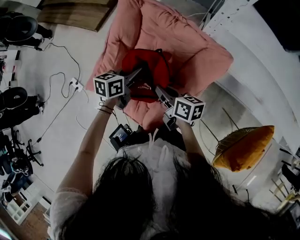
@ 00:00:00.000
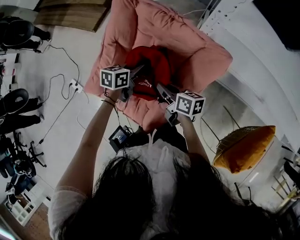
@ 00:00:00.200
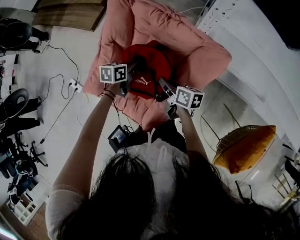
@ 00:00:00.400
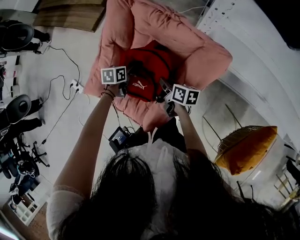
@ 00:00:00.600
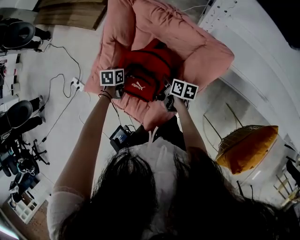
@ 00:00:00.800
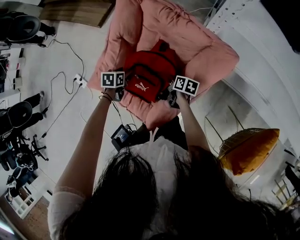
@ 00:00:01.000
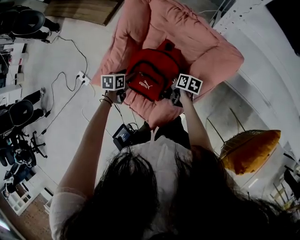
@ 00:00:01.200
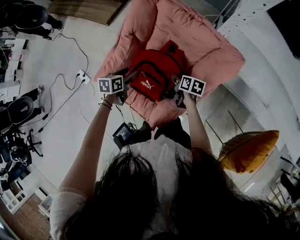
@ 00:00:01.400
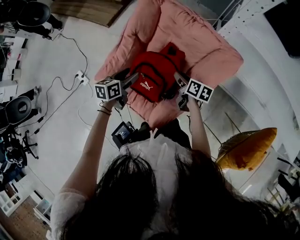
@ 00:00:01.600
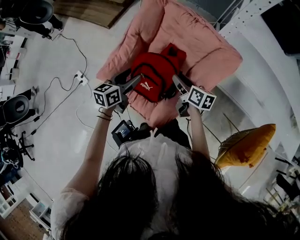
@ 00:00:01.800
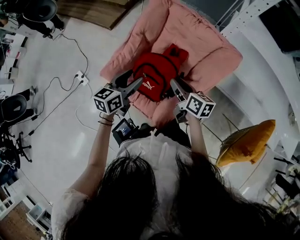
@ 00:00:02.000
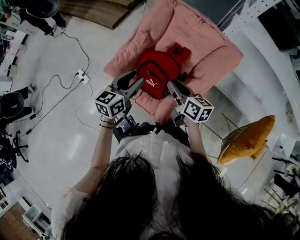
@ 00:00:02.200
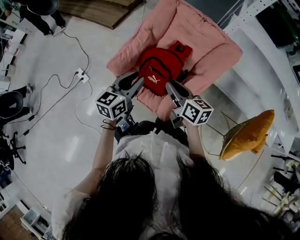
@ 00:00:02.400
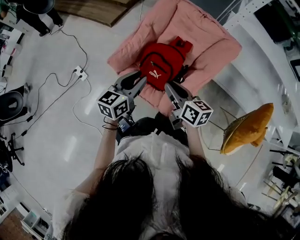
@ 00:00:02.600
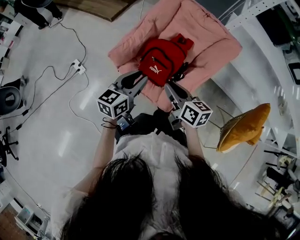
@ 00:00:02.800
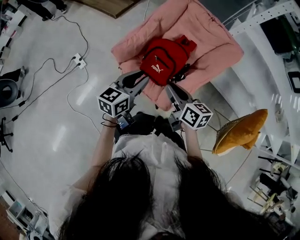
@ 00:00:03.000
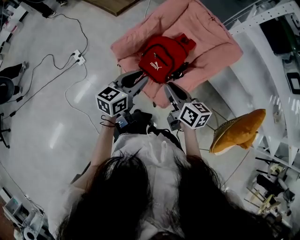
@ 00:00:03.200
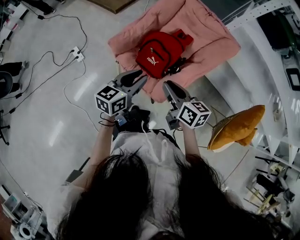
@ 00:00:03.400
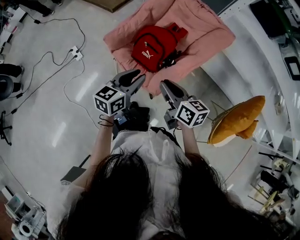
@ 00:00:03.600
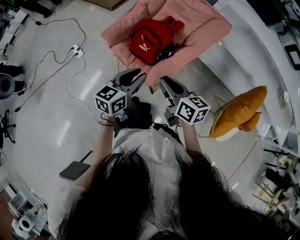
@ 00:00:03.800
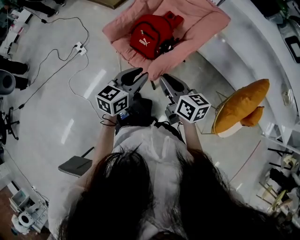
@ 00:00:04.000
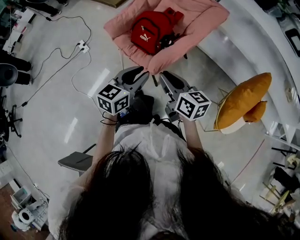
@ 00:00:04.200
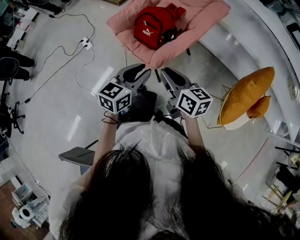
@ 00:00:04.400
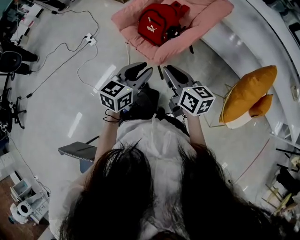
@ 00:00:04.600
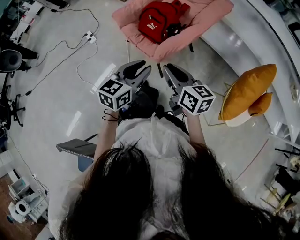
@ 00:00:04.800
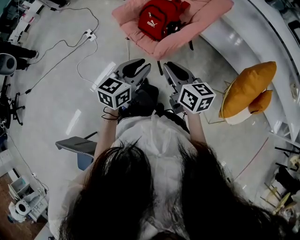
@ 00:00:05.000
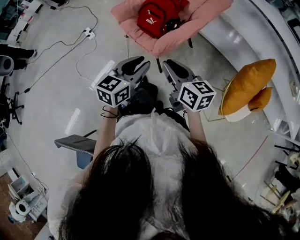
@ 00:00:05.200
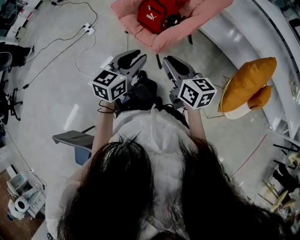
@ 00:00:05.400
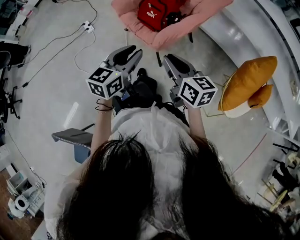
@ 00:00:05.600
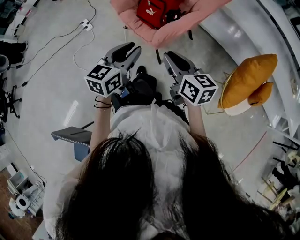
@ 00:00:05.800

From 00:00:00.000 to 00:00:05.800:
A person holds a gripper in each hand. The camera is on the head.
From 00:00:00.000 to 00:00:01.400: The left gripper heads to the left and downward, covering some 15 cm, and opens its fingers, while the right gripper heads downward, covering about 15 cm, turns by approximately 20 degrees, and opens its fingers.
From 00:00:01.400 to 00:00:02.800: The left gripper is displaced backward and upward by approximately 30 cm, tips its fingers upward by roughly 30 degrees, and closes its fingers, while the right gripper is displaced upward, backward and to the left by about 40 cm, rotates roughly 30 degrees, and closes its fingers.
From 00:00:02.800 to 00:00:04.400: Both grippers travel together backward and to the right, some 30 cm.
From 00:00:04.400 to 00:00:05.800: The left gripper moves roughly 5 cm, while the right gripper travels backward by approximately 5 cm.

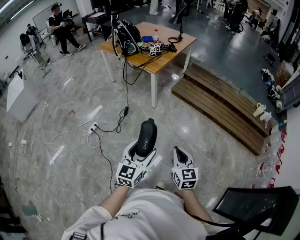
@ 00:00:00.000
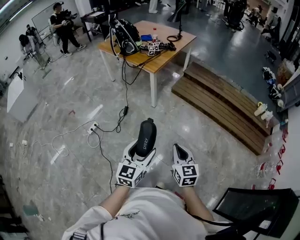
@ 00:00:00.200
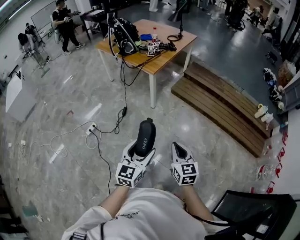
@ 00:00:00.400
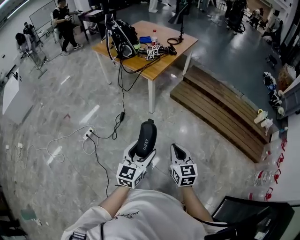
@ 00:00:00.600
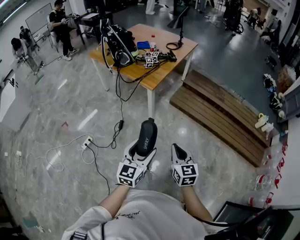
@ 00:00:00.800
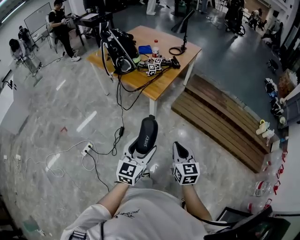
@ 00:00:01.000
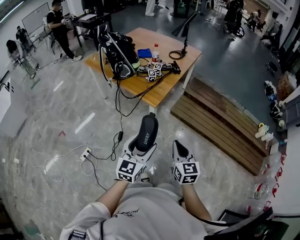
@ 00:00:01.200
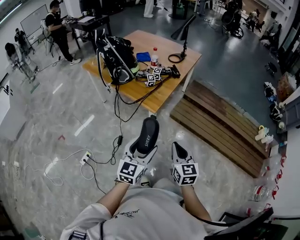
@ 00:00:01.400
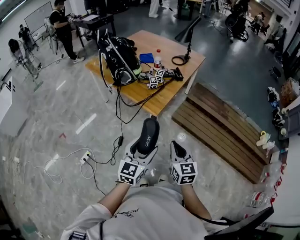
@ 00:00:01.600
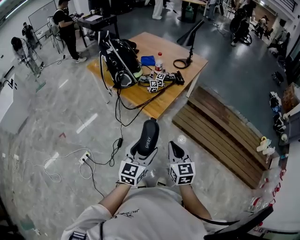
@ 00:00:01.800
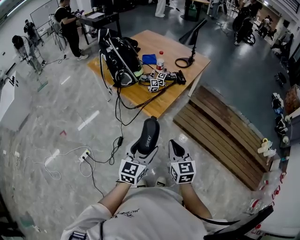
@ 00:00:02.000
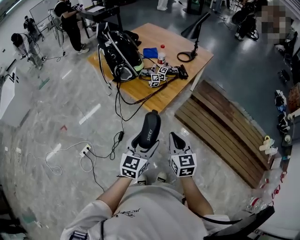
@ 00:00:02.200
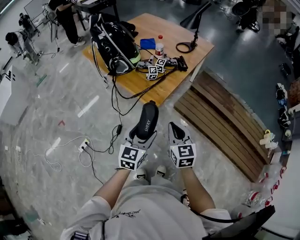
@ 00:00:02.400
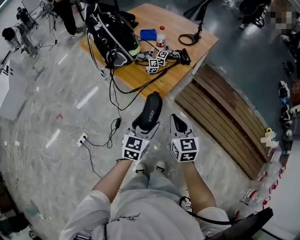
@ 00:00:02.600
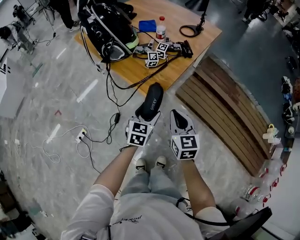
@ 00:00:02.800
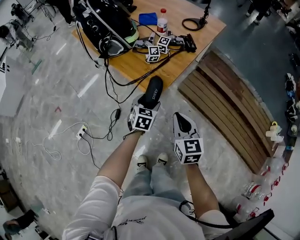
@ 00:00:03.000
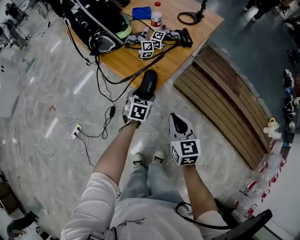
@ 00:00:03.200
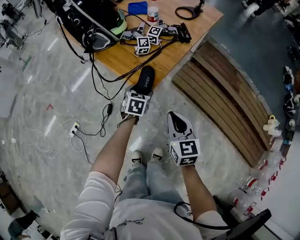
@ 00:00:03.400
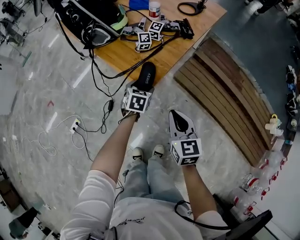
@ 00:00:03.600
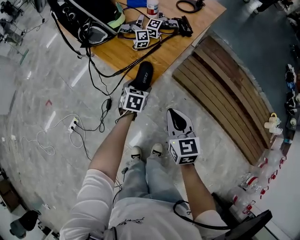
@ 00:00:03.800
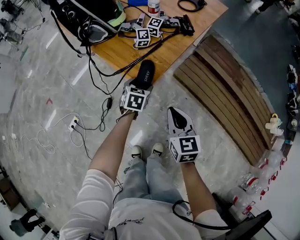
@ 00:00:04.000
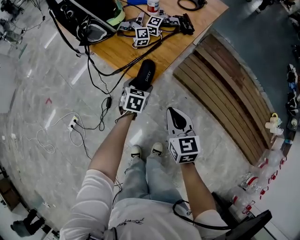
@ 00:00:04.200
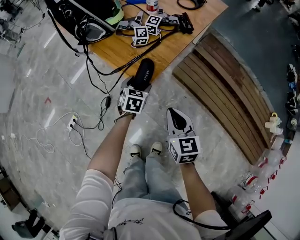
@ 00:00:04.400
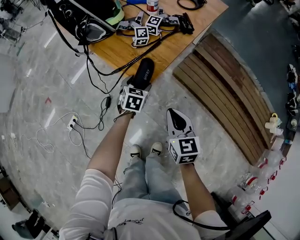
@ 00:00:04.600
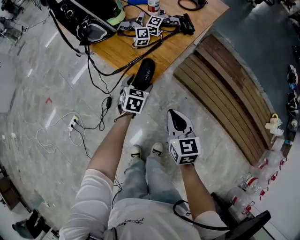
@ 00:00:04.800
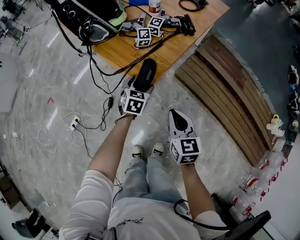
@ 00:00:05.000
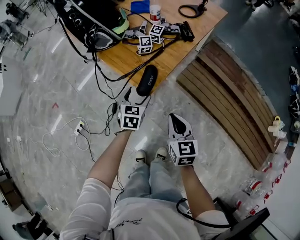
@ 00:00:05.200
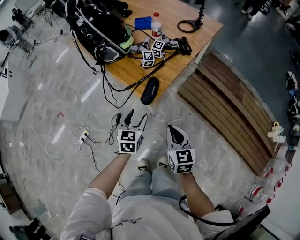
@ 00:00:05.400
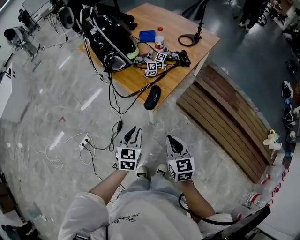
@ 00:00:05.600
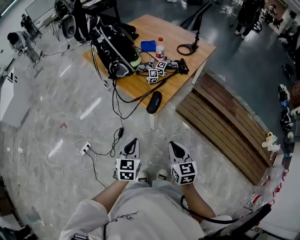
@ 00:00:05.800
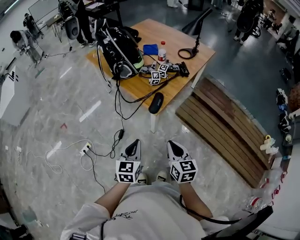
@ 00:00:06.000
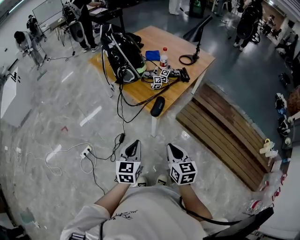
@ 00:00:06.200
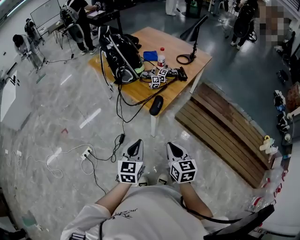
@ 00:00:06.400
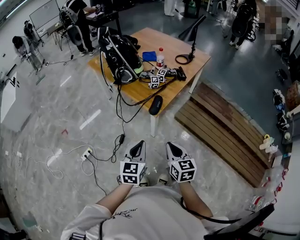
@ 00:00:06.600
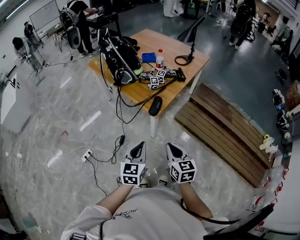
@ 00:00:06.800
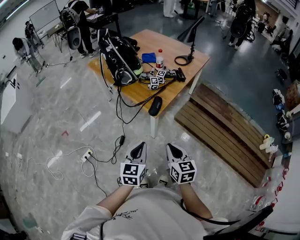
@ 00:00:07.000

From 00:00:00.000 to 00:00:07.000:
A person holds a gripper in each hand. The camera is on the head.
From 00:00:00.000 to 00:00:01.400: The two grippers travel together, forward, some 50 cm.
From 00:00:01.400 to 00:00:02.800: The right gripper moves forward, roughly 25 cm, while the left gripper moves forward and downward, approximately 30 cm, and swivels some 20 degrees.
From 00:00:02.800 to 00:00:04.200: The right gripper goes approximately 10 cm downward, while the left gripper travels downward and forward by roughly 20 cm.
From 00:00:04.200 to 00:00:05.600: The right gripper is displaced backward and upward by about 15 cm. Meanwhile the left gripper shifts some 25 cm upward and backward, and closes.
From 00:00:05.600 to 00:00:07.000: The two grippers go some 15 cm backward and upward.

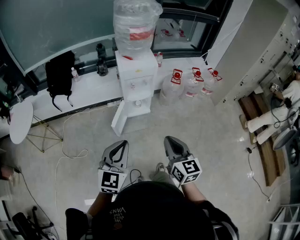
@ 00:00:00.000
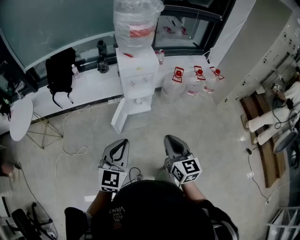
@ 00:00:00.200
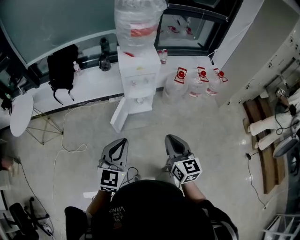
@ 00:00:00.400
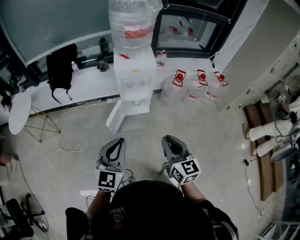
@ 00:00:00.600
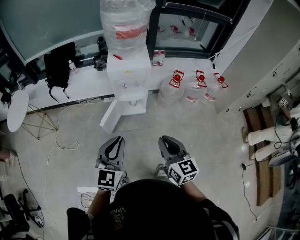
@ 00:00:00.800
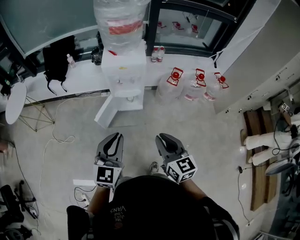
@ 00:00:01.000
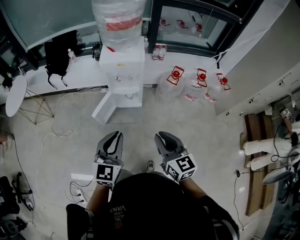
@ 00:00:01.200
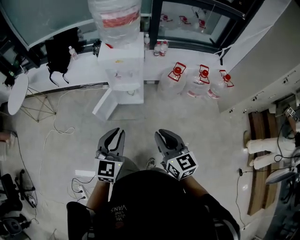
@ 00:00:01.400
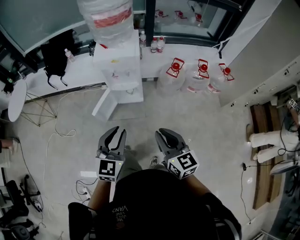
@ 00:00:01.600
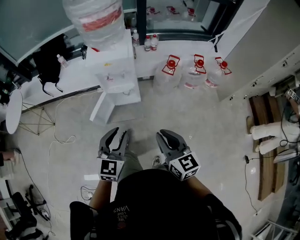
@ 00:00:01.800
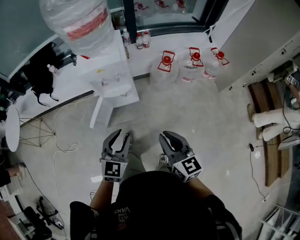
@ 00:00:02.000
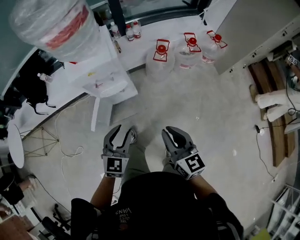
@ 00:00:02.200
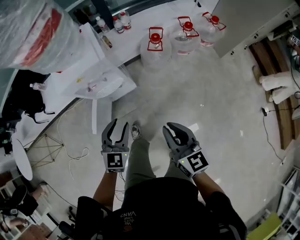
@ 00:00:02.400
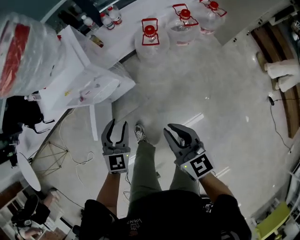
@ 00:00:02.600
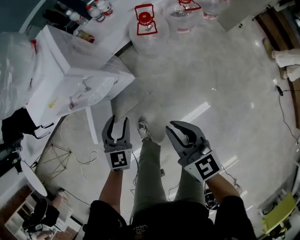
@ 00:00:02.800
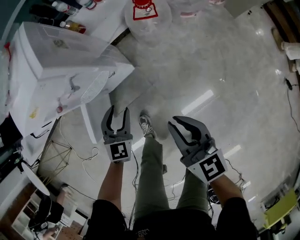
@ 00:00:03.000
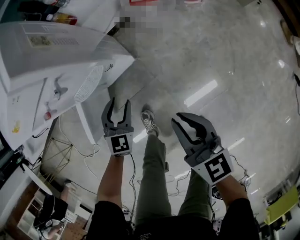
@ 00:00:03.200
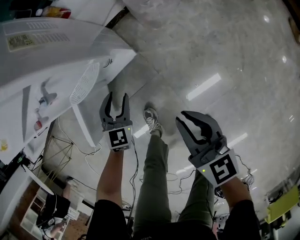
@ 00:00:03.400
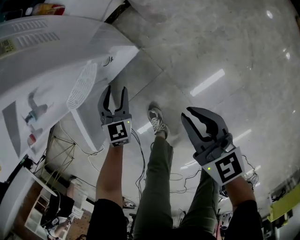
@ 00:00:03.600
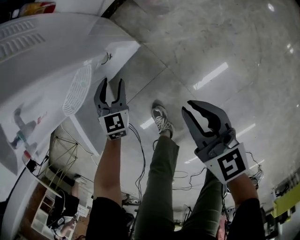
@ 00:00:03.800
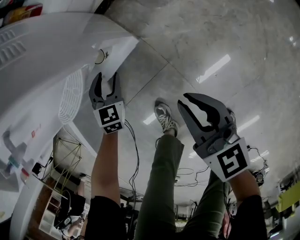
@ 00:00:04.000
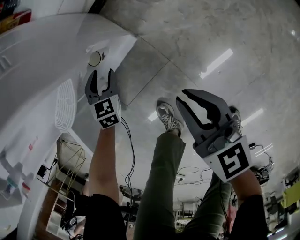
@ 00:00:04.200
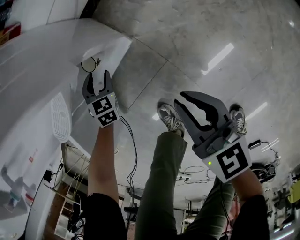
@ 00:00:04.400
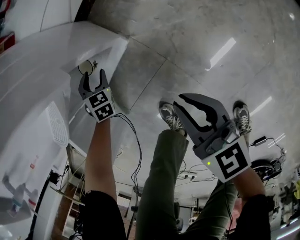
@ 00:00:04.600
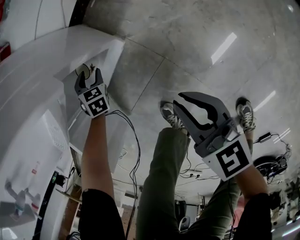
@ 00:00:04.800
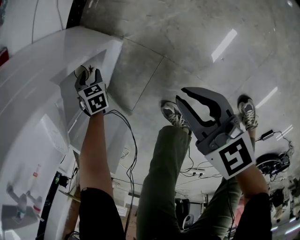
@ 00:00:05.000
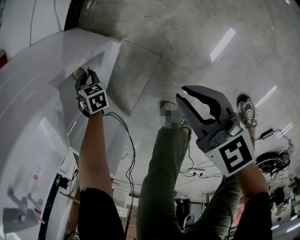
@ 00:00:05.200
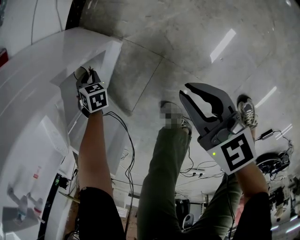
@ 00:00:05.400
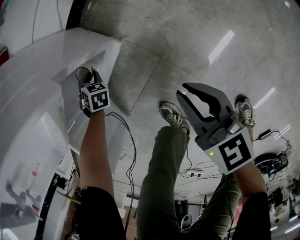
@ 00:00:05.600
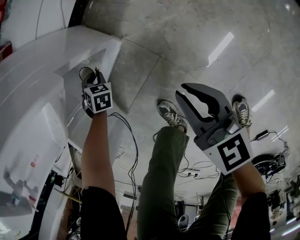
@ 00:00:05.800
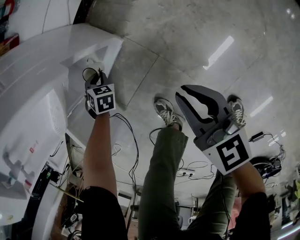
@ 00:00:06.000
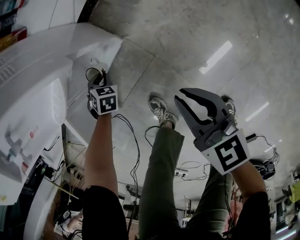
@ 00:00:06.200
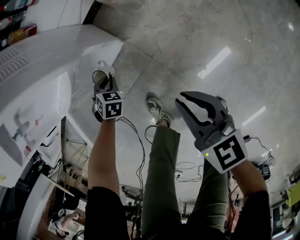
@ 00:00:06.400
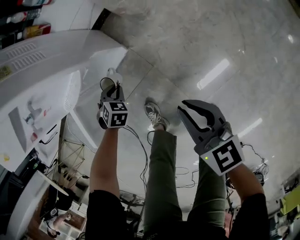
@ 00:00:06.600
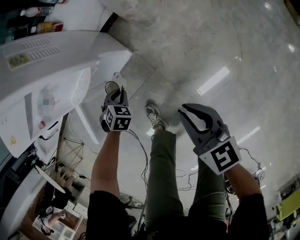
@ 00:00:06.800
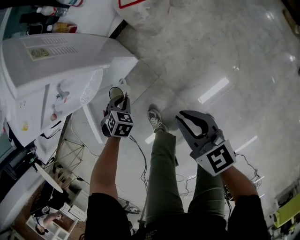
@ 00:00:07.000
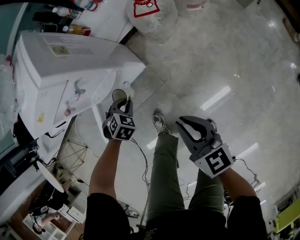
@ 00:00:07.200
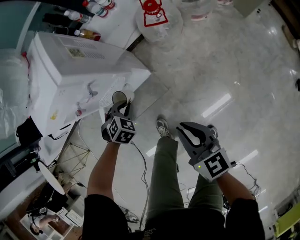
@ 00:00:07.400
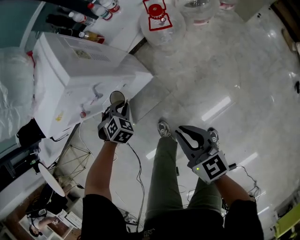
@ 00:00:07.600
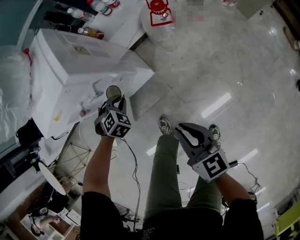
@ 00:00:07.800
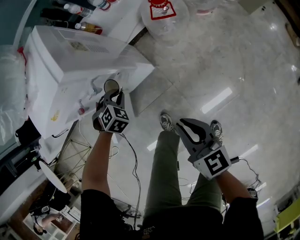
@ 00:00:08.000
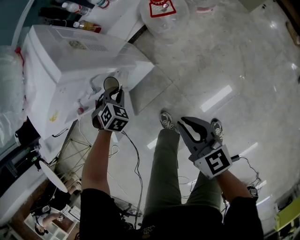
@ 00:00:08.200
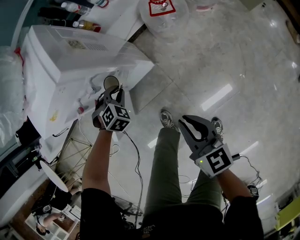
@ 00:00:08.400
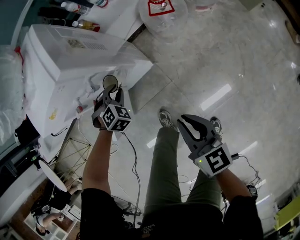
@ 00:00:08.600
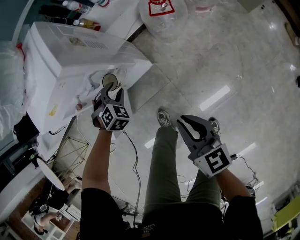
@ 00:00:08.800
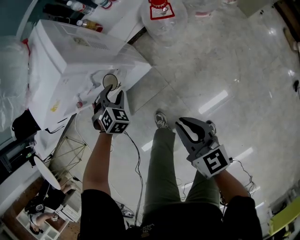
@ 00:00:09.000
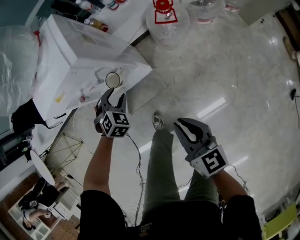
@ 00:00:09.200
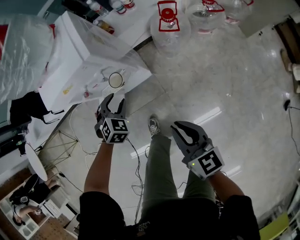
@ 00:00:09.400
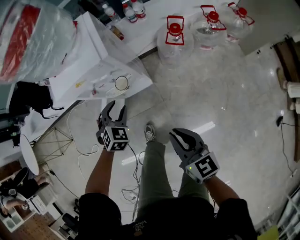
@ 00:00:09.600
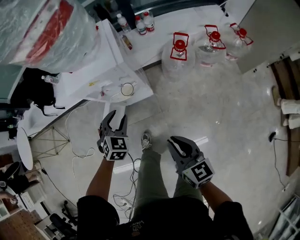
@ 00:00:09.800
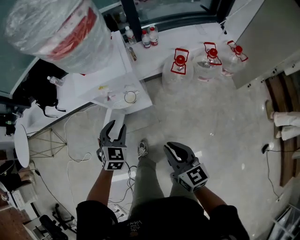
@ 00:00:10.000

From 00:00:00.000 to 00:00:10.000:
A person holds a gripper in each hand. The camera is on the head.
From 00:00:00.000 to 00:00:01.400: Both grippers move to the right and forward, some 30 cm. The right gripper swivels roughly 20 degrees.
From 00:00:01.400 to 00:00:02.800: Both grippers travel together downward and forward, some 35 cm. The left gripper turns by approximately 30 degrees, and opens up. Meanwhile the right gripper changes its angle by some 30 degrees.
From 00:00:02.800 to 00:00:04.200: The grippers both shift downward by roughly 40 cm. The left gripper changes its angle by roughly 20 degrees.
From 00:00:04.200 to 00:00:05.800: The left gripper goes approximately 10 cm downward, changes its angle by roughly 30 degrees, and closes up, while the right gripper is displaced downward by some 5 cm.
From 00:00:05.800 to 00:00:07.200: Both grippers travel together upward, some 35 cm.
From 00:00:07.200 to 00:00:08.600: The left gripper is displaced forward by some 10 cm. The right gripper changes place by about 5 cm.
From 00:00:08.600 to 00:00:10.000: The right gripper moves upward, approximately 20 cm; the left gripper heads upward and backward, covering approximately 35 cm, and rotates around the line of its fingers by some 40 degrees, counterclockwise from behind.
